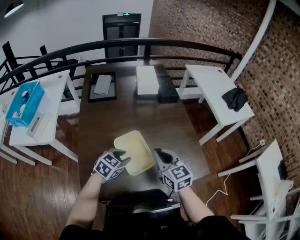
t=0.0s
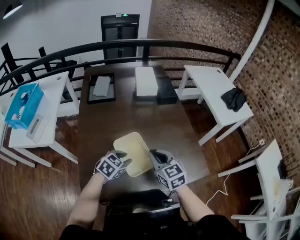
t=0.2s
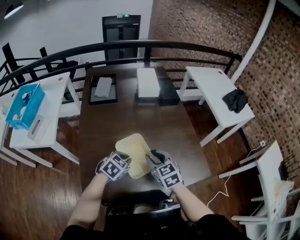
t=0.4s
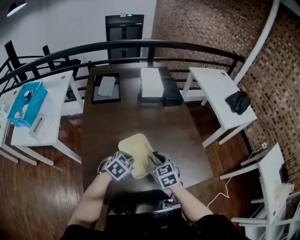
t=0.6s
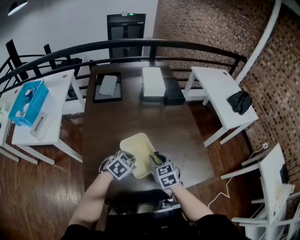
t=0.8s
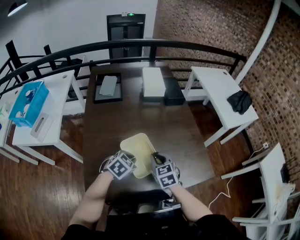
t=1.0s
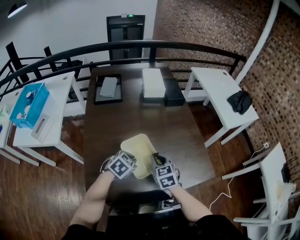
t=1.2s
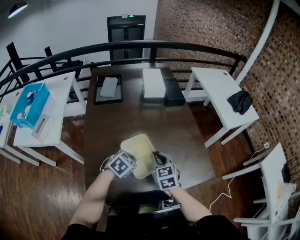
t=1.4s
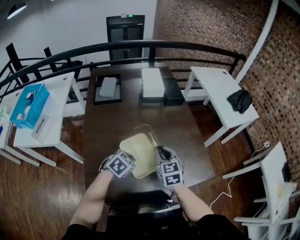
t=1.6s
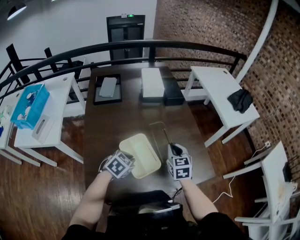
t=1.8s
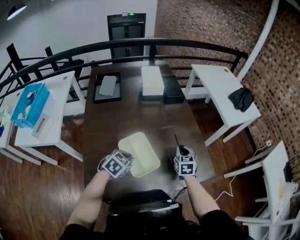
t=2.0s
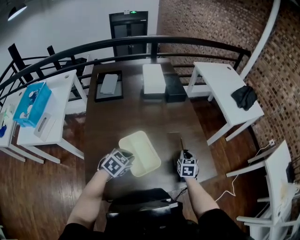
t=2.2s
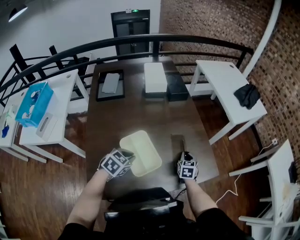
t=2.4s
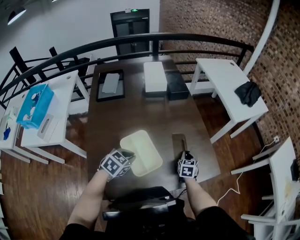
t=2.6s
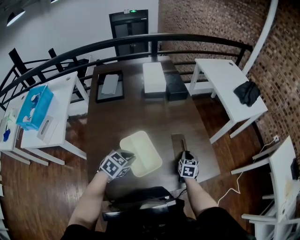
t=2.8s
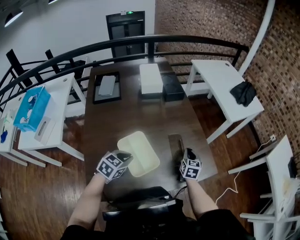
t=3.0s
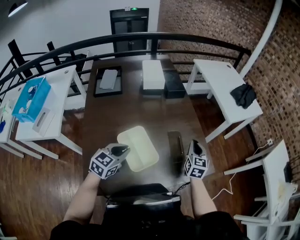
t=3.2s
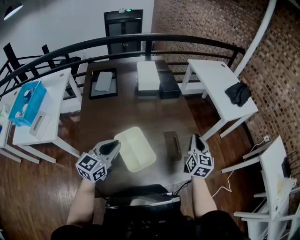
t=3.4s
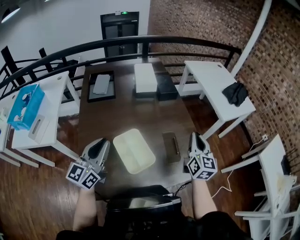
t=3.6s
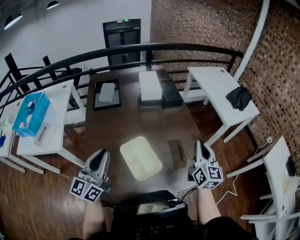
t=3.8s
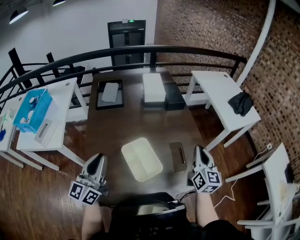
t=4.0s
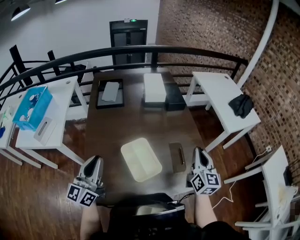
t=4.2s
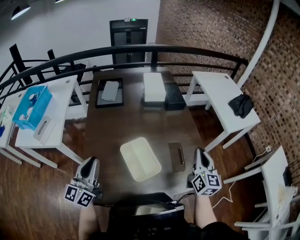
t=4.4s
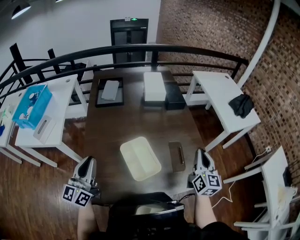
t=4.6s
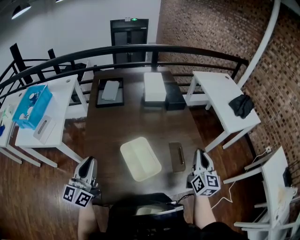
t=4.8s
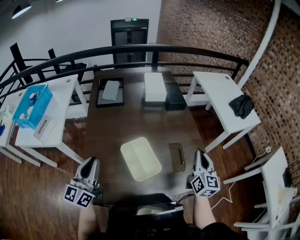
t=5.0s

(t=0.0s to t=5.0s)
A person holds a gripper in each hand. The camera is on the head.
t=0.0s - t=1.6s: The left gripper closes up, while the right gripper opens and closes again.
t=1.6s - t=3.4s: The right gripper shifts about 20 cm to the right and forward, moves about 15 cm downward and comes back, and turns by some 30 degrees, while the left gripper travels upward by some 15 cm, and tips its fingers upward by some 40 degrees.
t=3.4s - t=5.0s: The left gripper travels to the left and backward by approximately 15 cm, and swivels some 30 degrees; the right gripper changes place by roughly 5 cm.

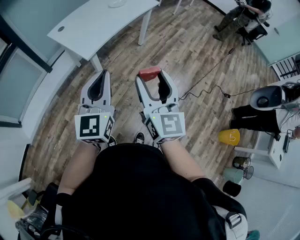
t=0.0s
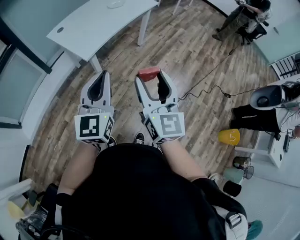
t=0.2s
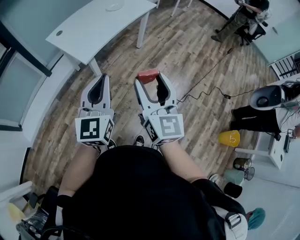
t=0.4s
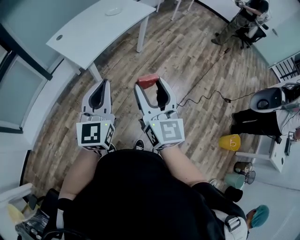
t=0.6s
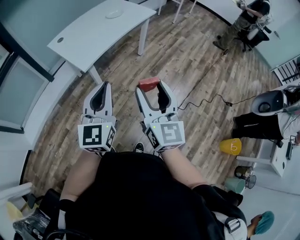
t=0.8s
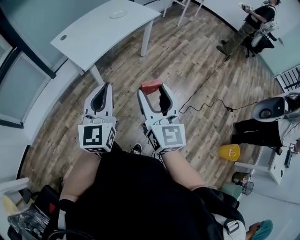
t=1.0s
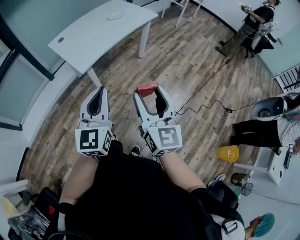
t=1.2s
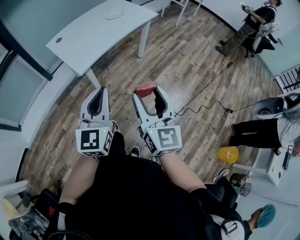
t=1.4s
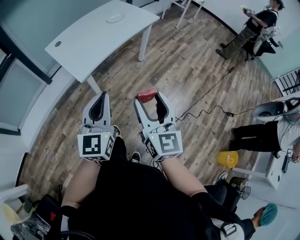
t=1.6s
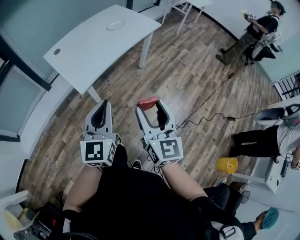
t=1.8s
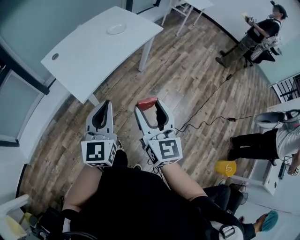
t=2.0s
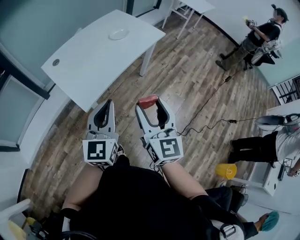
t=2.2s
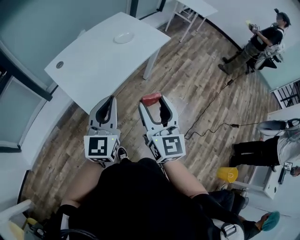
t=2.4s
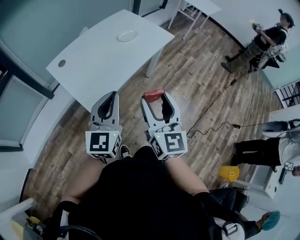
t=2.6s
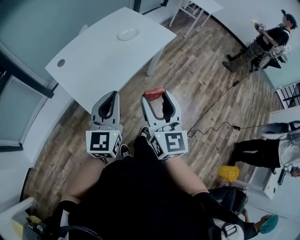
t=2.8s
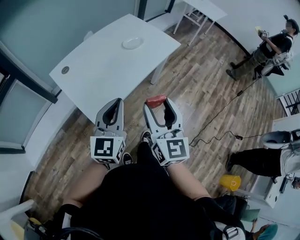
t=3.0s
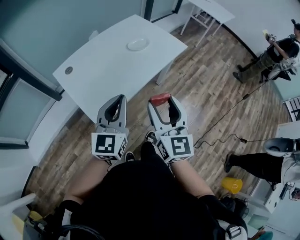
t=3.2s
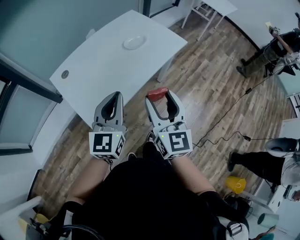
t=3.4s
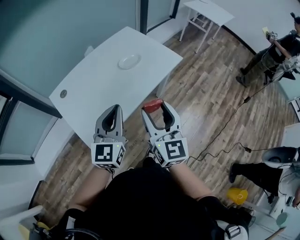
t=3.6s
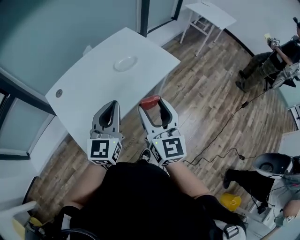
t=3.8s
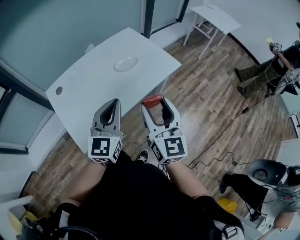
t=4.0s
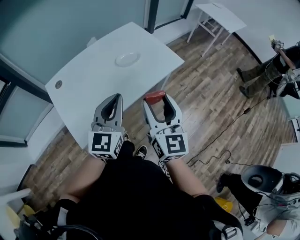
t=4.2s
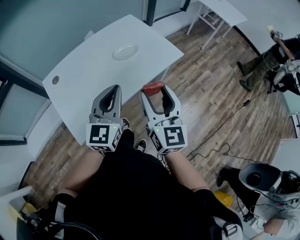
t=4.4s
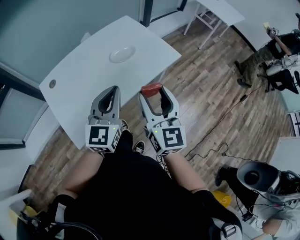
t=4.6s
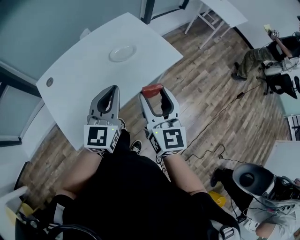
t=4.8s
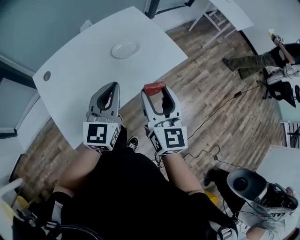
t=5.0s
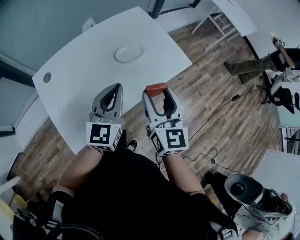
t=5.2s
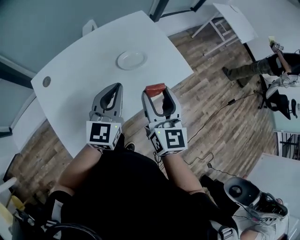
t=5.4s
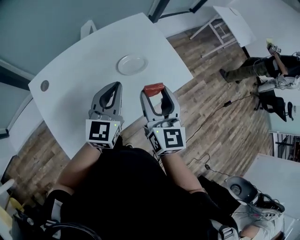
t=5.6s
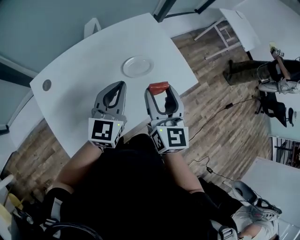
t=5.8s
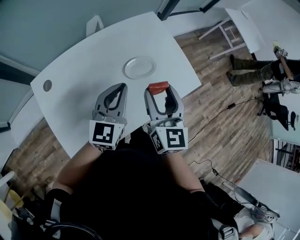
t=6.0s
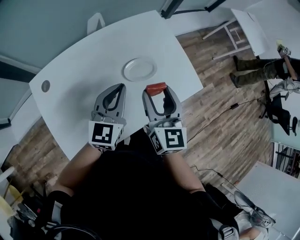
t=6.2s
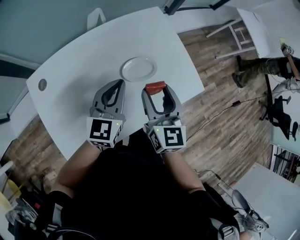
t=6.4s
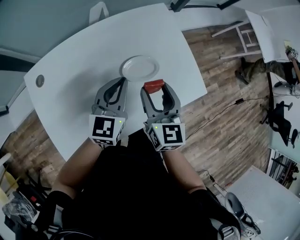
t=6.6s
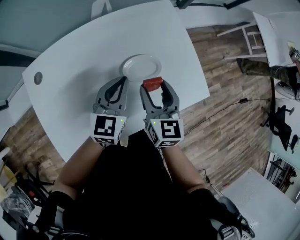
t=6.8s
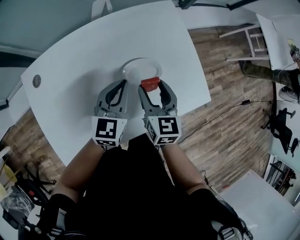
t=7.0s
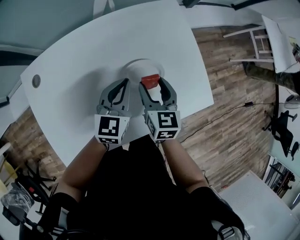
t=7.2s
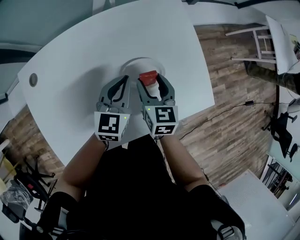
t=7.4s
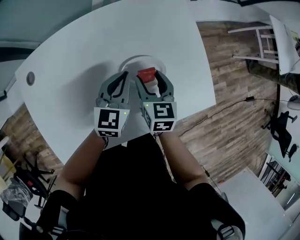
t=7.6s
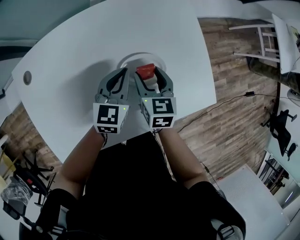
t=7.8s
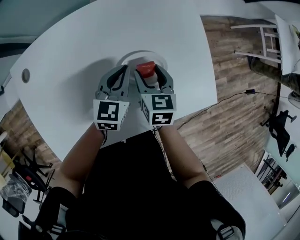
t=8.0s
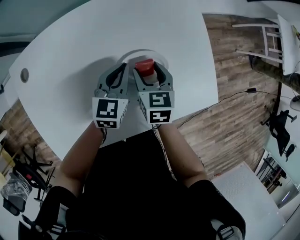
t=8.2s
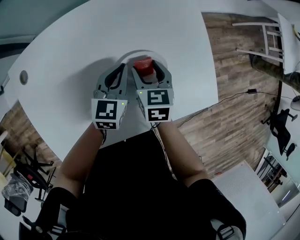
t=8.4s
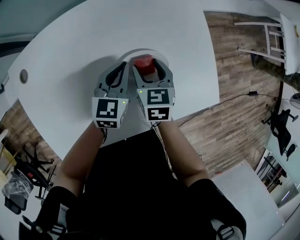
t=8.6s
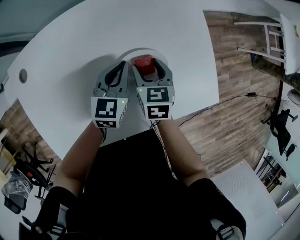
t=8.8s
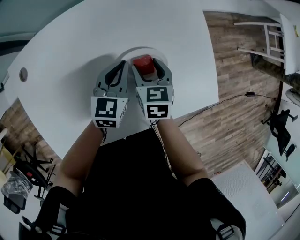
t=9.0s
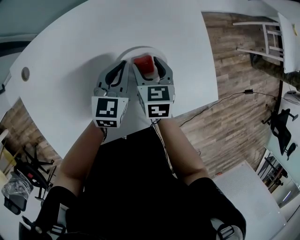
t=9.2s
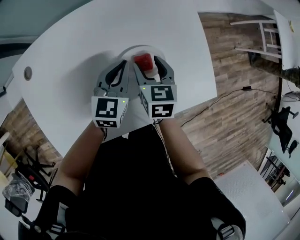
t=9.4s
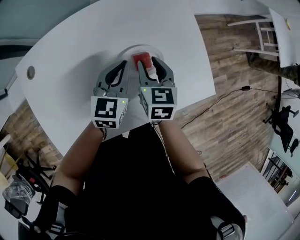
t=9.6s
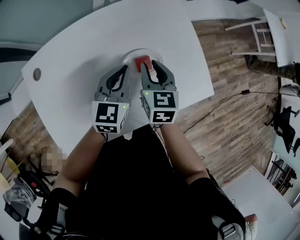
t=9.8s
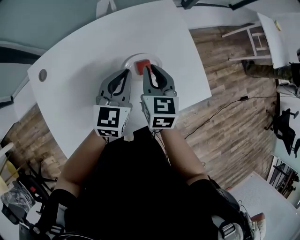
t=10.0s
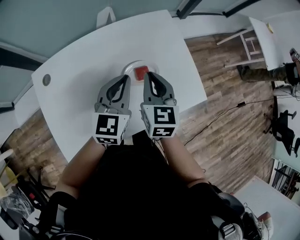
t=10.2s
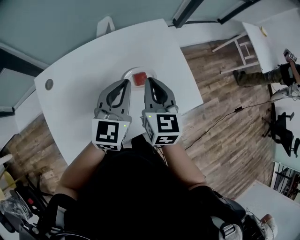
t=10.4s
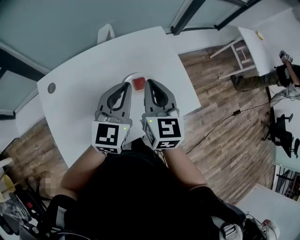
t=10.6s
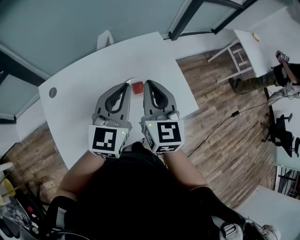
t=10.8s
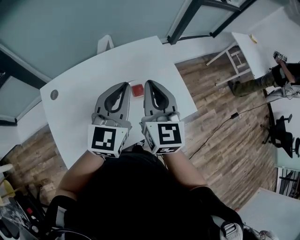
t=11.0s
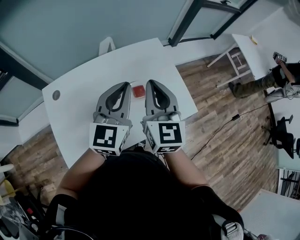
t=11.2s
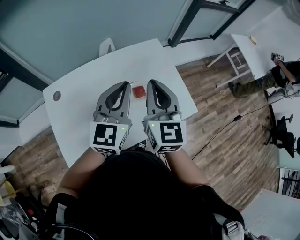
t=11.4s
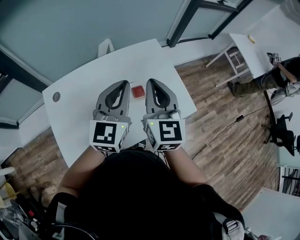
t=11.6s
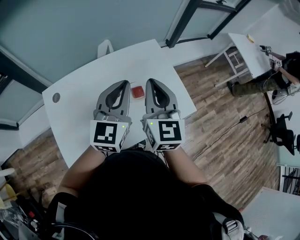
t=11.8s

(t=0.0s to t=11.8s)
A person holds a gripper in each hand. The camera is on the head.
t=0.0s - t=1.4s: The two grippers go roughly 5 cm to the right.
t=1.4s - t=3.0s: The two grippers go some 30 cm forward.
t=3.0s - t=4.4s: Both grippers move forward and to the right, roughly 20 cm.
t=4.4s - t=6.0s: The grippers both shift forward by some 20 cm.
t=6.0s - t=7.4s: Both grippers travel together downward and forward, about 20 cm. The right gripper swivels some 30 degrees.
t=7.4s - t=8.8s: Both grippers travel together downward, some 5 cm.
t=8.8s - t=10.4s: The two grippers go approximately 20 cm upward. The right gripper swivels about 30 degrees, and closes. Meanwhile the left gripper rotates about 20 degrees.
t=10.4s - t=11.8s: Both grippers move upward, roughly 10 cm.

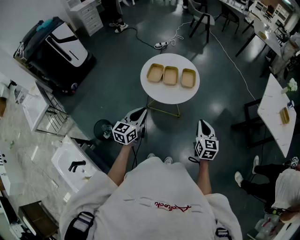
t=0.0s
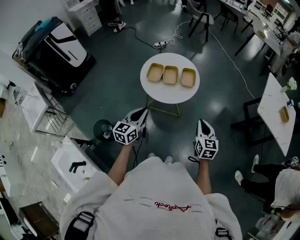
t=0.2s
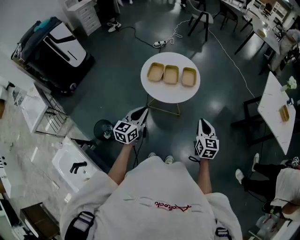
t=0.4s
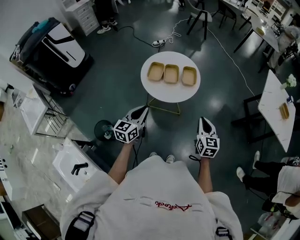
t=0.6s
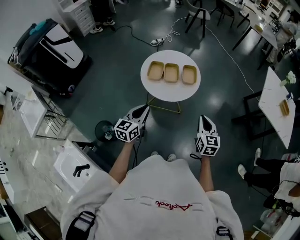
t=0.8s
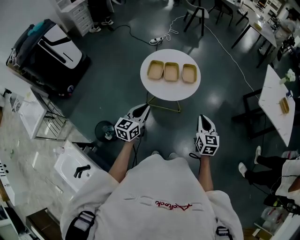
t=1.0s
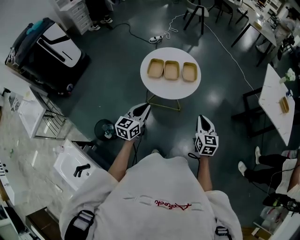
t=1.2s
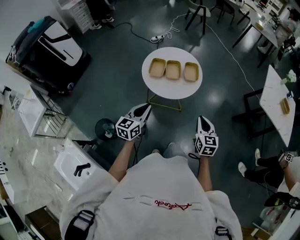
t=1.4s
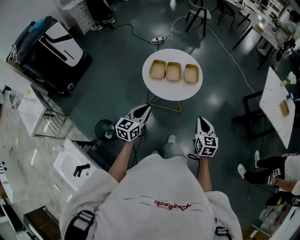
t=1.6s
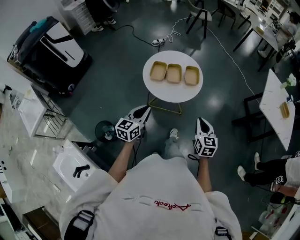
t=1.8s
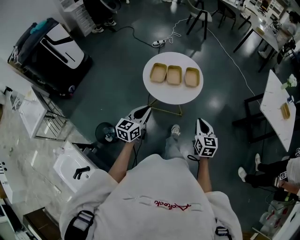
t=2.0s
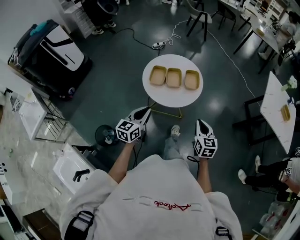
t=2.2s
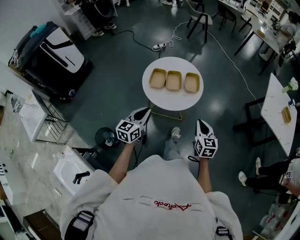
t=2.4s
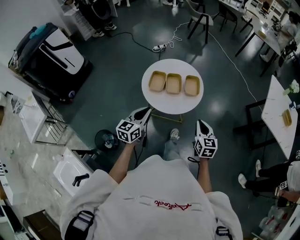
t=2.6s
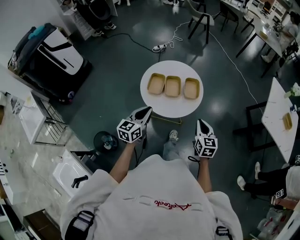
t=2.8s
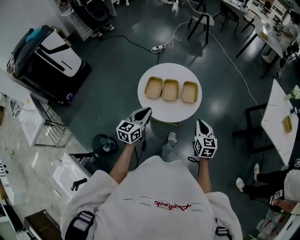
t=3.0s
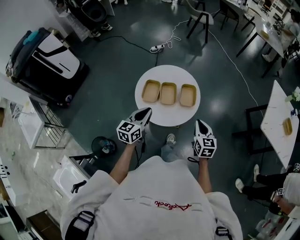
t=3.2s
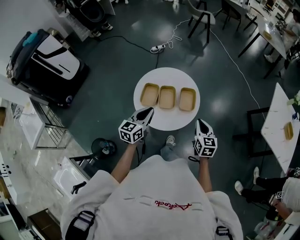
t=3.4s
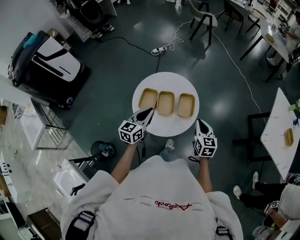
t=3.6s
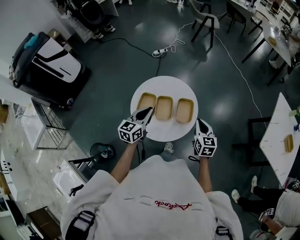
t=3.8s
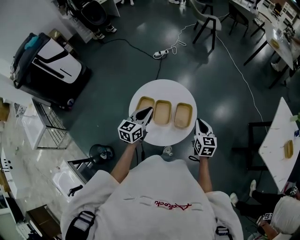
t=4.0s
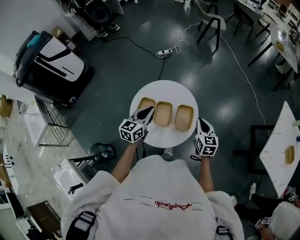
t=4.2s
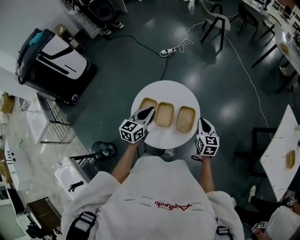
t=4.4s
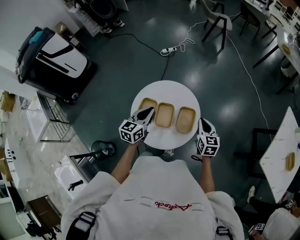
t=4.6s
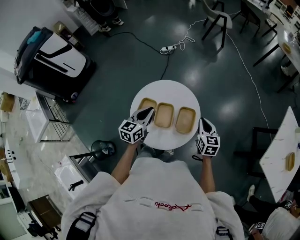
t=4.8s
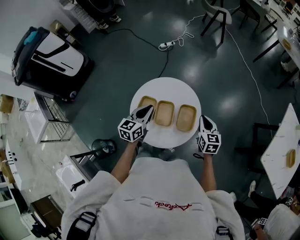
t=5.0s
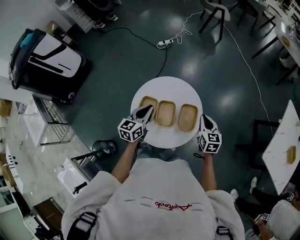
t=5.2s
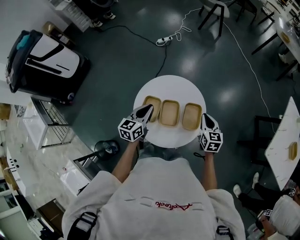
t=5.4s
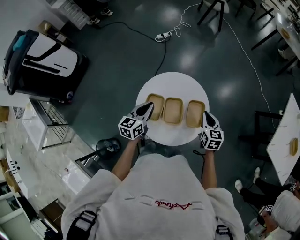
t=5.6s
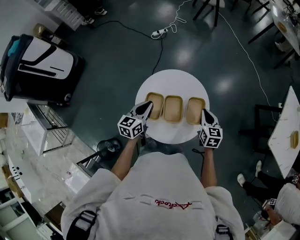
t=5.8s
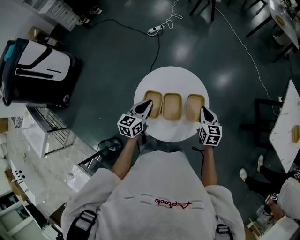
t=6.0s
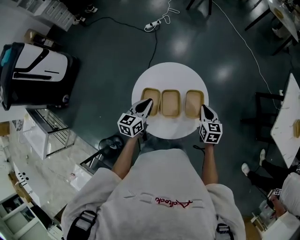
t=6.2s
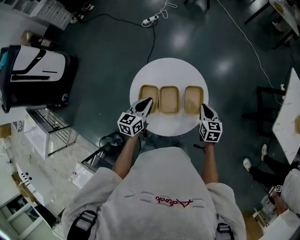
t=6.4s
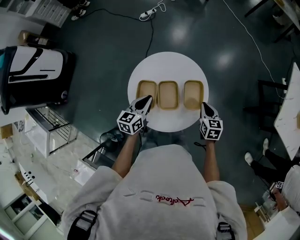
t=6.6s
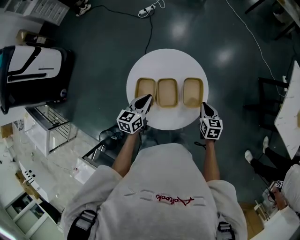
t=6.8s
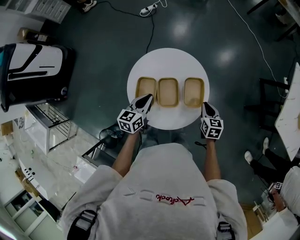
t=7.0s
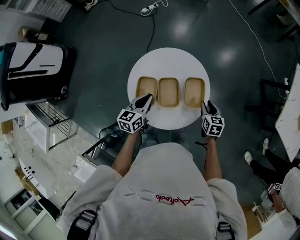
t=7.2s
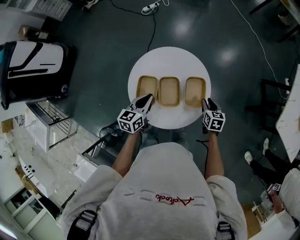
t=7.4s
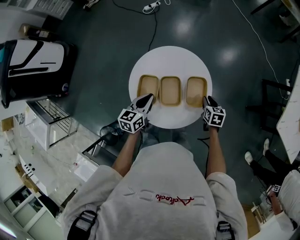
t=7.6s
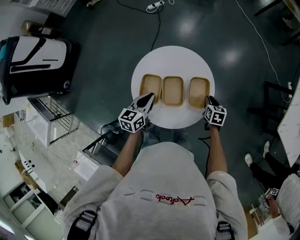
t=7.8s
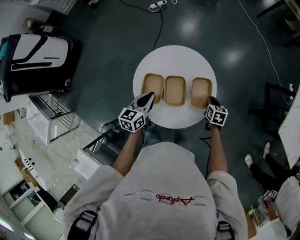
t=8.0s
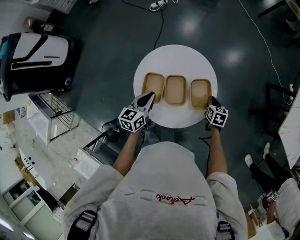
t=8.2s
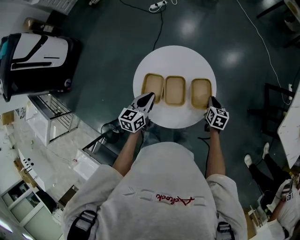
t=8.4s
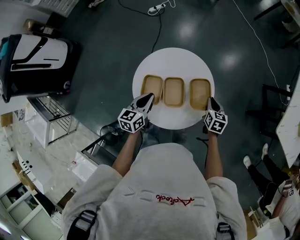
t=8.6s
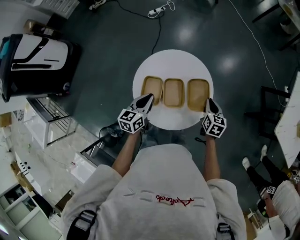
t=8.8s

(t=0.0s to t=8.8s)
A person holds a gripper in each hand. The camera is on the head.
t=0.0s - t=1.4s: The right gripper ends up some 5 cm from where it was.
t=1.4s - t=3.0s: Both grippers move forward, approximately 15 cm.
t=3.0s - t=4.4s: The grippers both shift forward by some 25 cm.
t=4.4s - t=5.8s: The right gripper shifts approximately 5 cm to the left; the left gripper heads to the left and downward, covering about 10 cm.
t=5.8s - t=7.4s: The right gripper shifts about 15 cm downward and to the right, and opens. Meanwhile the left gripper is displaced downward and to the right by roughly 10 cm.
t=7.4s - t=8.8s: The right gripper goes approximately 5 cm upward, and closes up.
